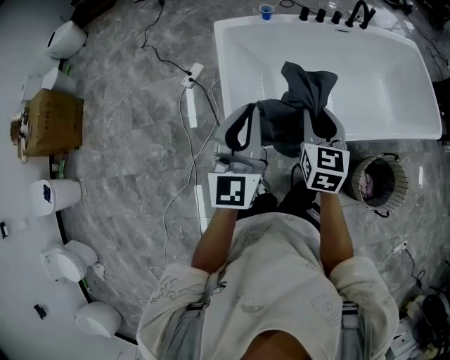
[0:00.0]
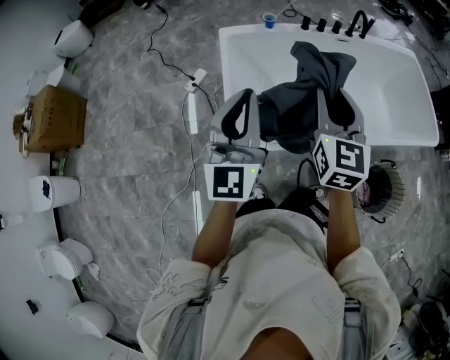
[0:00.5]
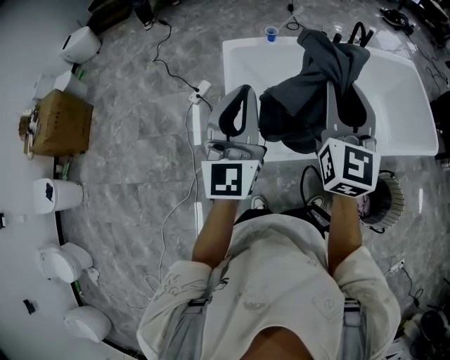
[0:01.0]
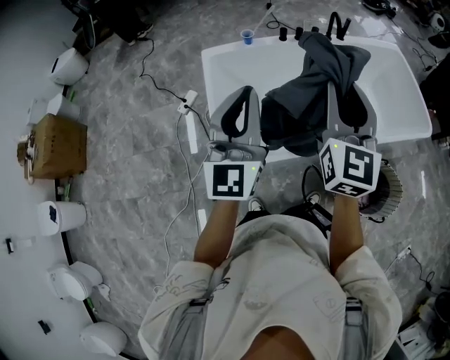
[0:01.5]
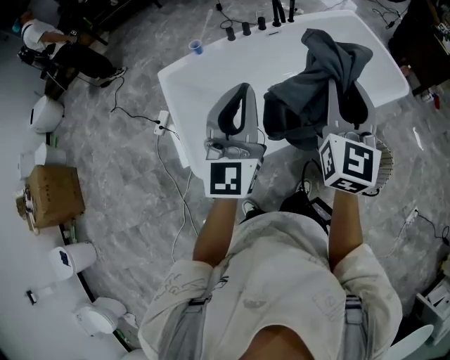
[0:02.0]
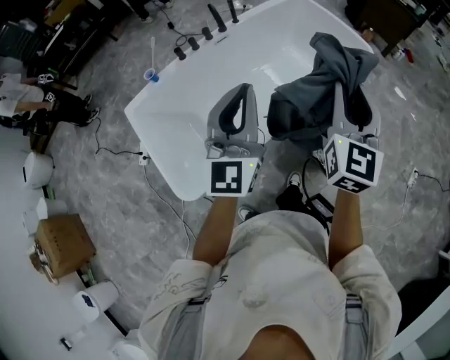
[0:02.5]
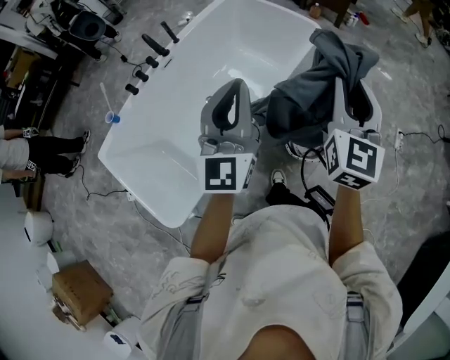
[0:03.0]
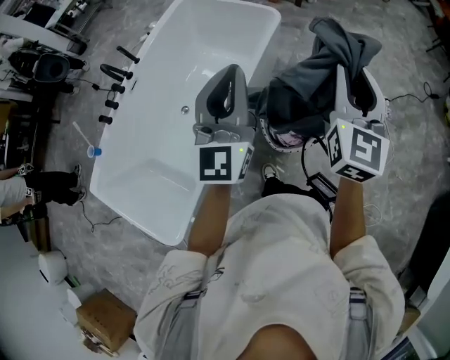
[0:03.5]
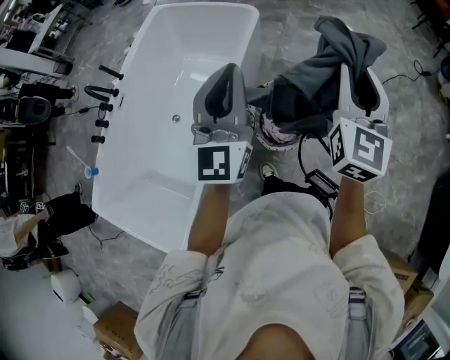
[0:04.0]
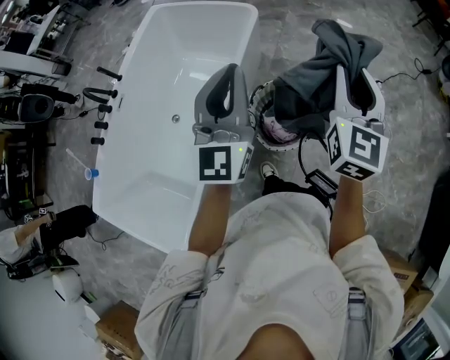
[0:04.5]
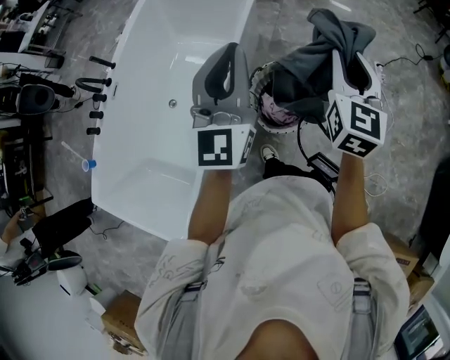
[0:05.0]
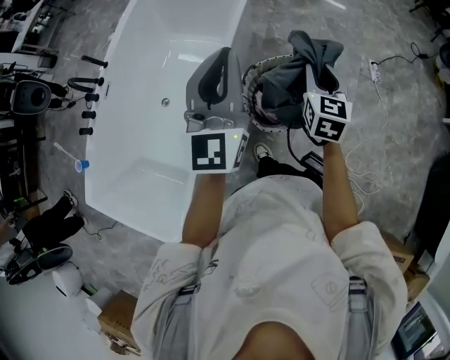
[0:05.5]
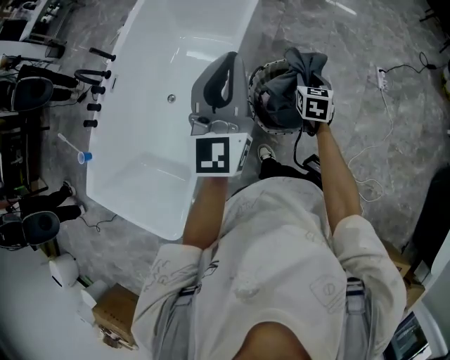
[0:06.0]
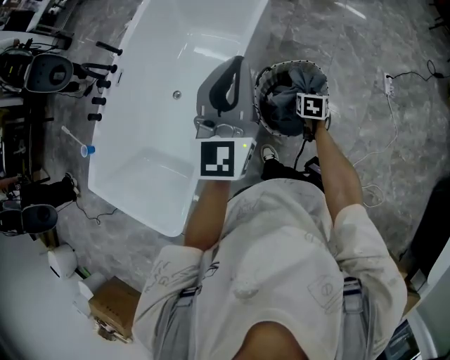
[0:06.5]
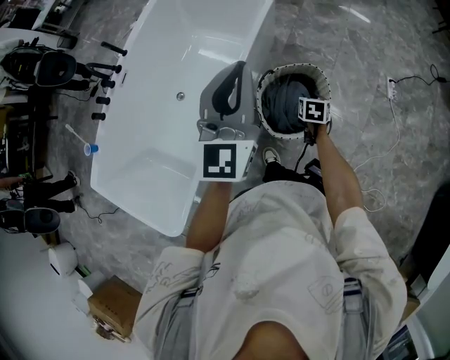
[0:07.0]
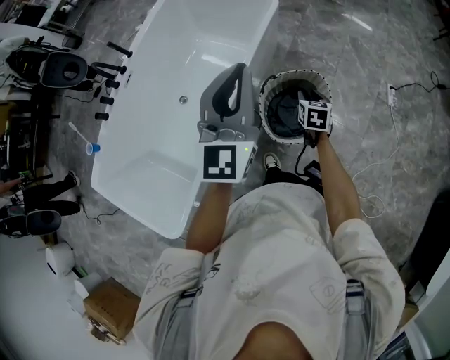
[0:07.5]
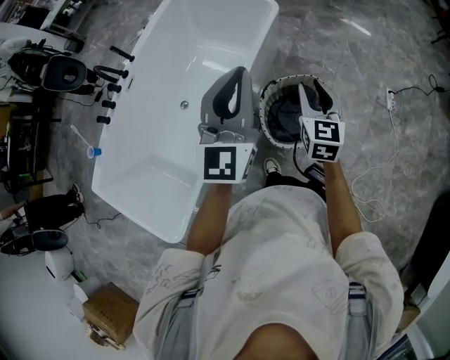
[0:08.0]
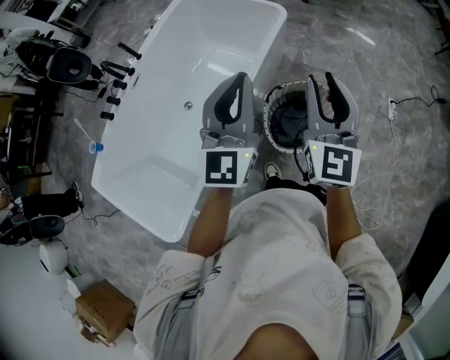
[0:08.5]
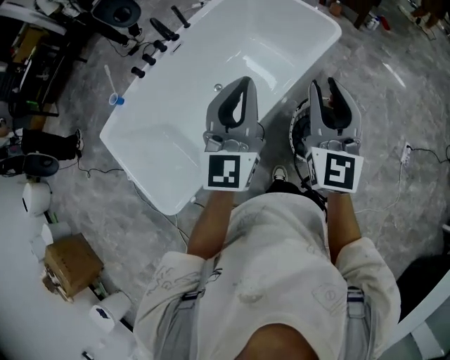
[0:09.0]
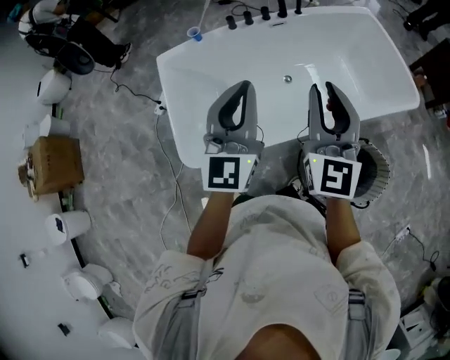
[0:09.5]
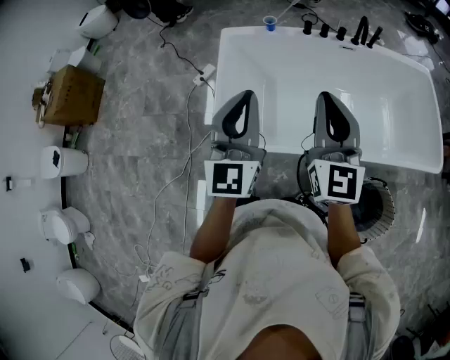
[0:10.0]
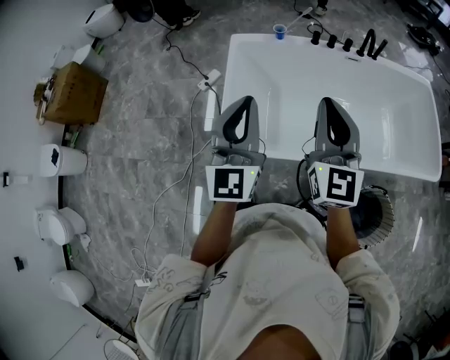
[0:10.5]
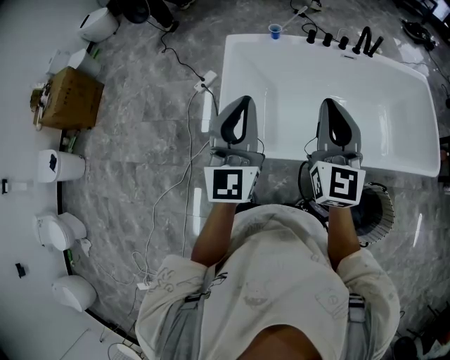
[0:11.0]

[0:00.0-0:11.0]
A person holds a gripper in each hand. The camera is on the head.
0:00.0 to 0:02.0: Both grippers travel together to the right and upward, roughly 30 cm. The right gripper swivels some 30 degrees.
0:02.0 to 0:03.5: The two grippers travel together, approximately 40 cm. The right gripper swivels some 40 degrees. Meanwhile the left gripper swivels some 40 degrees.
0:03.5 to 0:05.5: The right gripper moves downward, approximately 20 cm, and turns by approximately 30 degrees. The left gripper is displaced forward by approximately 5 cm.
0:05.5 to 0:07.5: The right gripper moves downward, approximately 20 cm, and changes its angle by approximately 20 degrees.
0:07.5 to 0:09.0: The left gripper heads to the left and backward, covering some 15 cm. The right gripper is displaced upward and to the left by approximately 40 cm, and tips its fingers upward by roughly 50 degrees.
0:09.0 to 0:11.0: The two grippers travel together, roughly 50 cm. The left gripper rotates about 50 degrees; the right gripper rotates roughly 50 degrees.

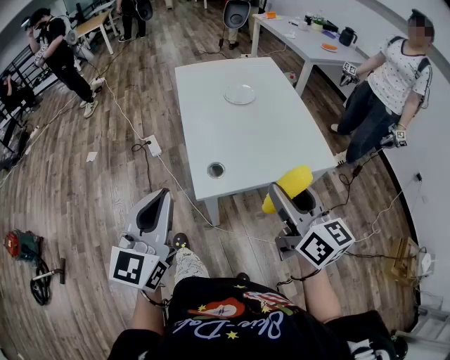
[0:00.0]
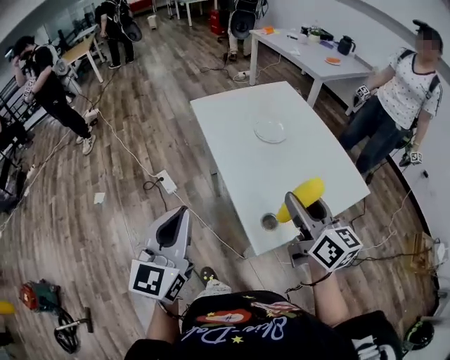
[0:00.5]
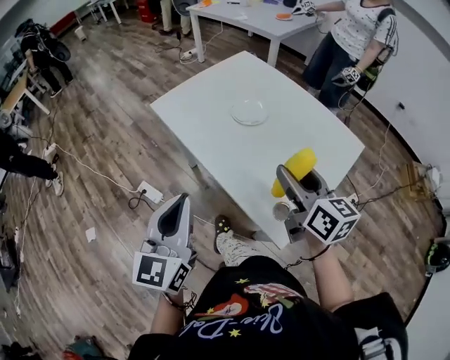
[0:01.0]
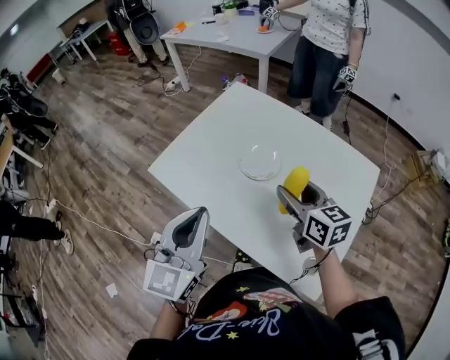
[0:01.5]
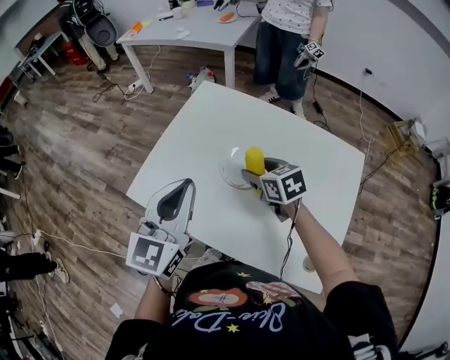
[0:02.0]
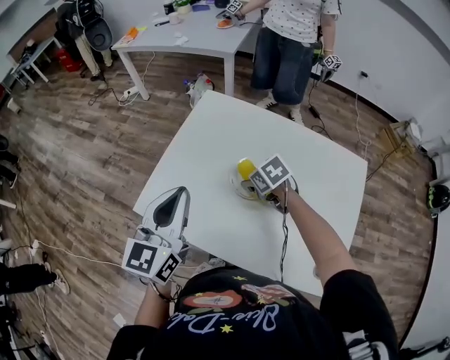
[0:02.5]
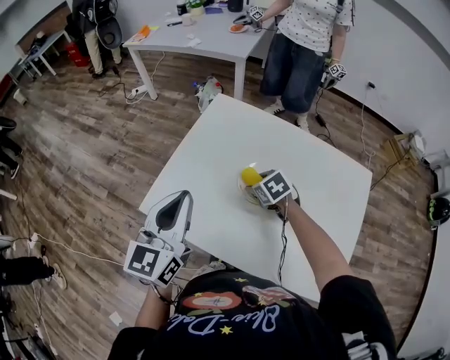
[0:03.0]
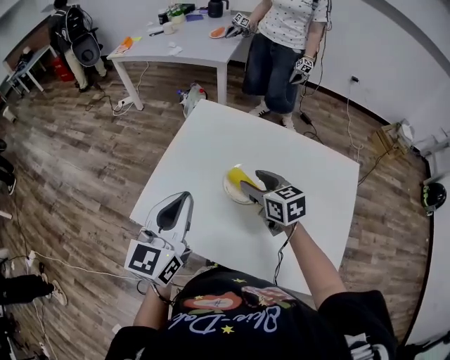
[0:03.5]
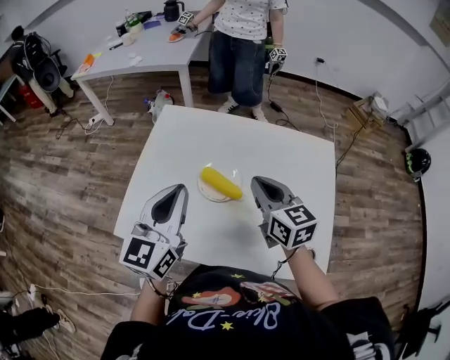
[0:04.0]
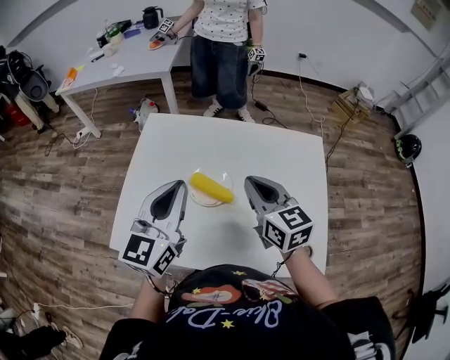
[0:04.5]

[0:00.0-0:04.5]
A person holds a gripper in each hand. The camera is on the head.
0:00.0 to 0:02.0: Both grippers are carried approximately 60 cm. The right gripper tips its fingers downward by roughly 40 degrees. Meanwhile the left gripper swivels some 50 degrees.
0:02.0 to 0:04.5: The left gripper shifts by some 10 cm. Meanwhile the right gripper heads upward, covering some 10 cm, turns by approximately 40 degrees, and closes its fingers.

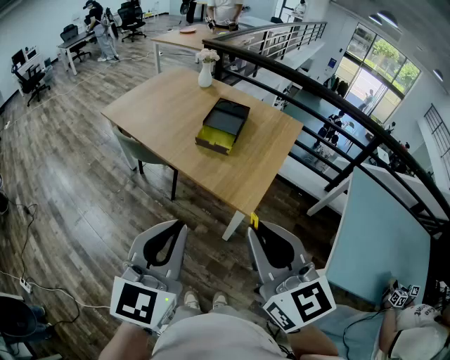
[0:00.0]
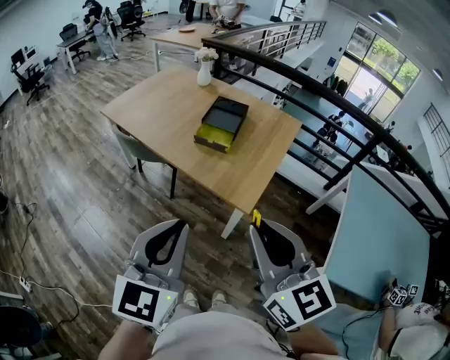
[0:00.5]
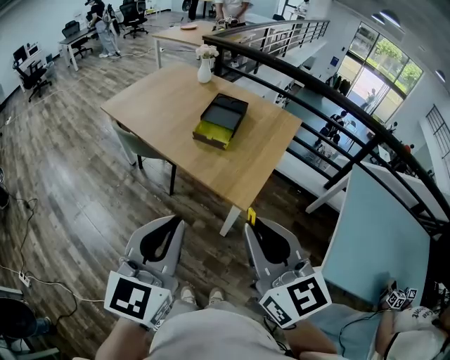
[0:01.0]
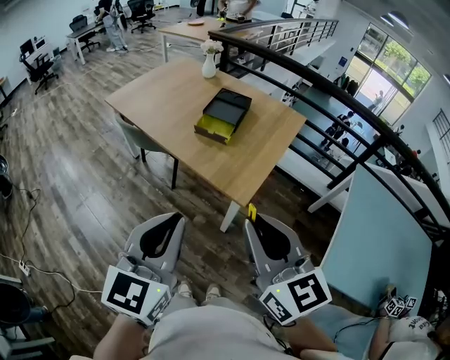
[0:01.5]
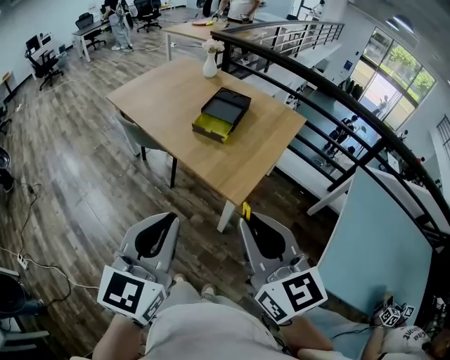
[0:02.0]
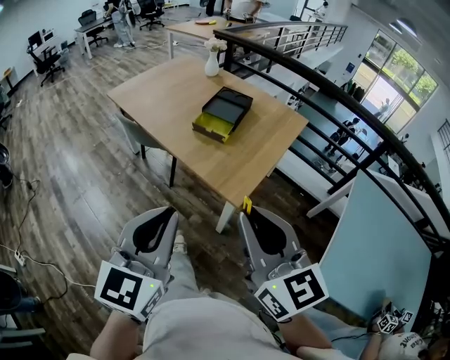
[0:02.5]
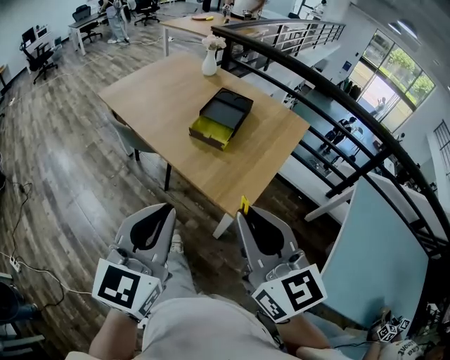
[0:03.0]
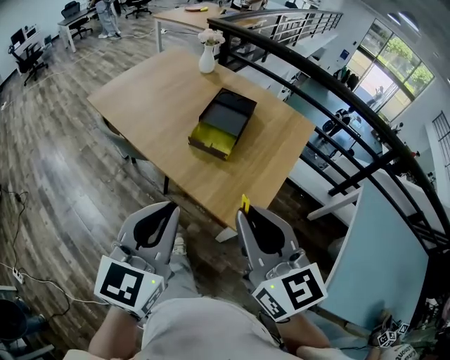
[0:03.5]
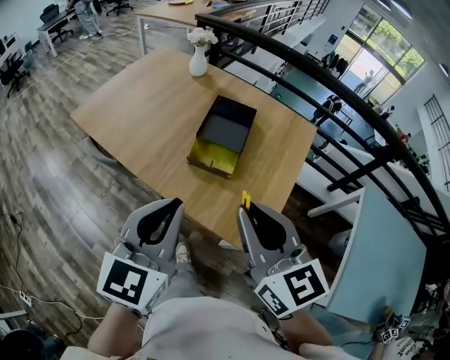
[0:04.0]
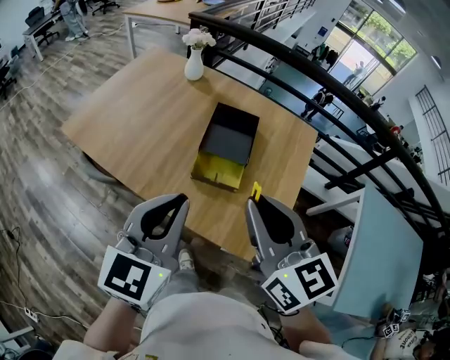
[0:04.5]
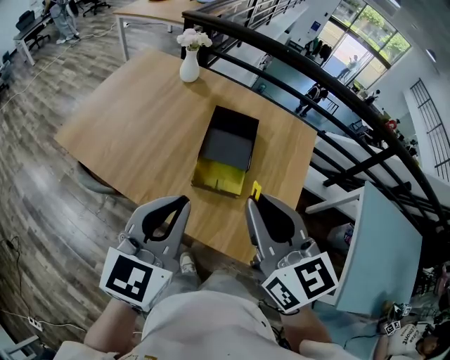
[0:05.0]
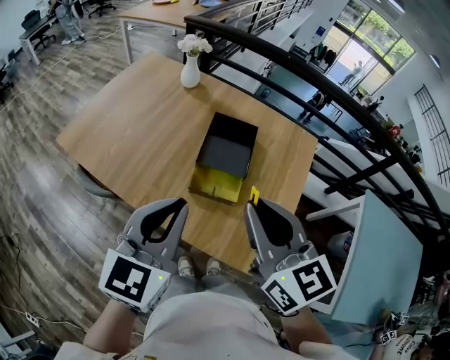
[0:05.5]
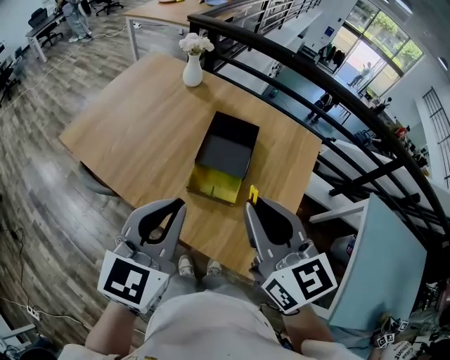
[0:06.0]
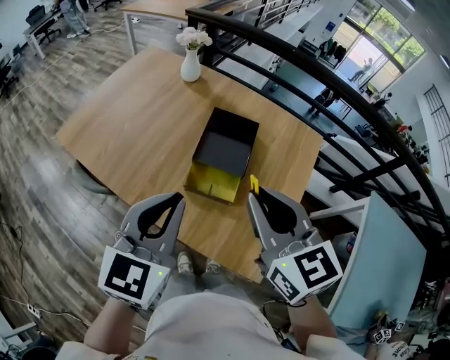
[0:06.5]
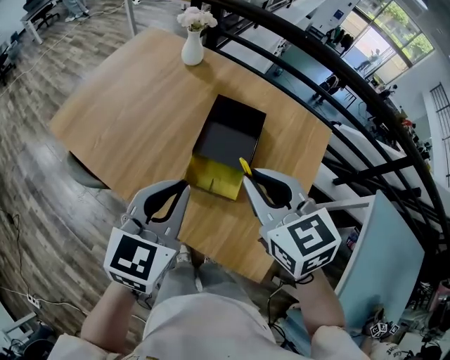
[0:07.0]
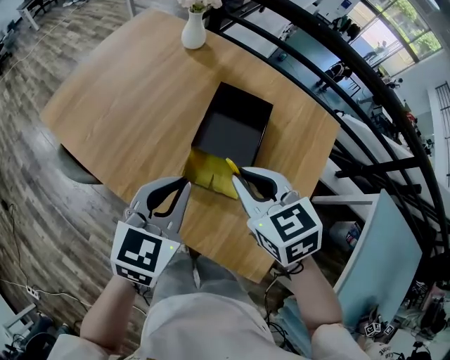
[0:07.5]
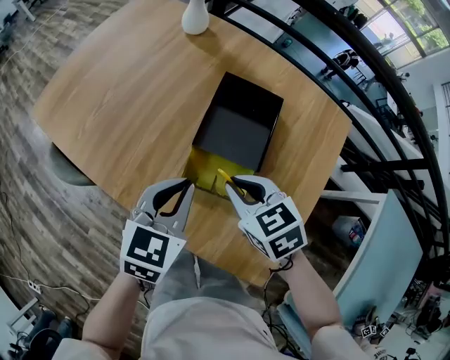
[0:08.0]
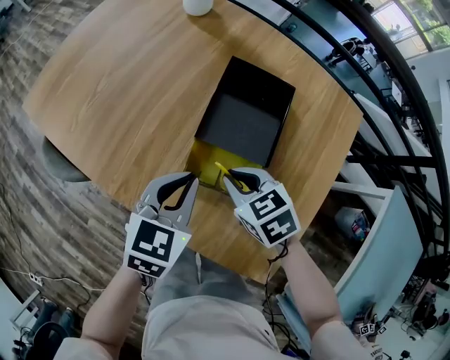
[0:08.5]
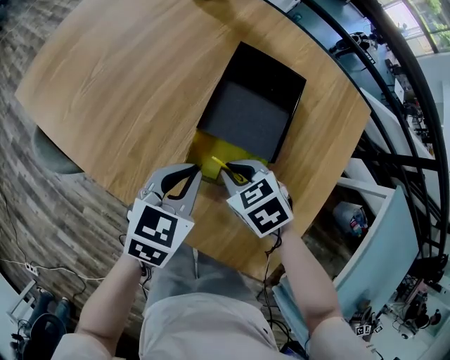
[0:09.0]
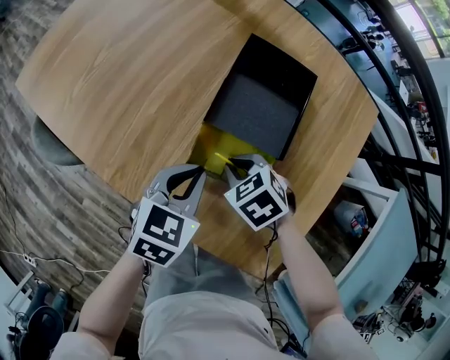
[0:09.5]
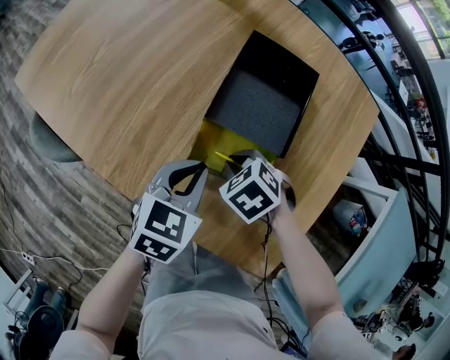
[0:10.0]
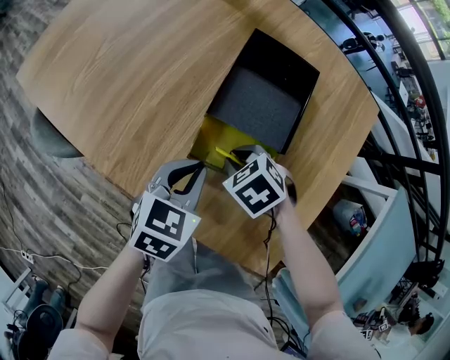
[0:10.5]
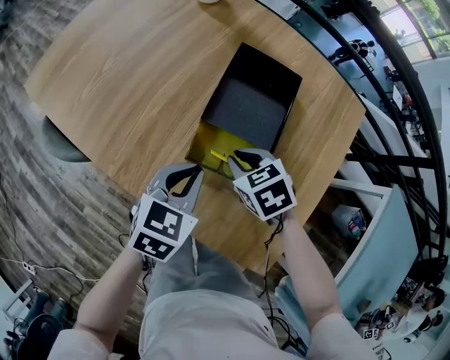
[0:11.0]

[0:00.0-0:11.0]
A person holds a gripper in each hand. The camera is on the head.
0:00.0 to 0:02.0: The two grippers go approximately 5 cm to the right.
0:02.0 to 0:03.5: The grippers both shift forward by some 20 cm.
0:03.5 to 0:05.5: Both grippers move forward, roughly 25 cm.
0:05.5 to 0:07.5: The grippers both shift downward and forward by roughly 20 cm. The right gripper changes its angle by approximately 30 degrees.
0:07.5 to 0:09.0: Both grippers travel together downward, approximately 20 cm. The right gripper swivels some 30 degrees.
0:09.0 to 0:11.0: The right gripper travels downward and back again, some 5 cm each way.
